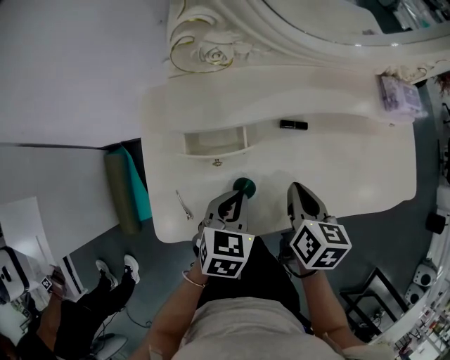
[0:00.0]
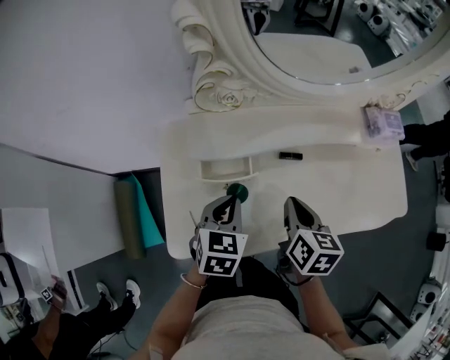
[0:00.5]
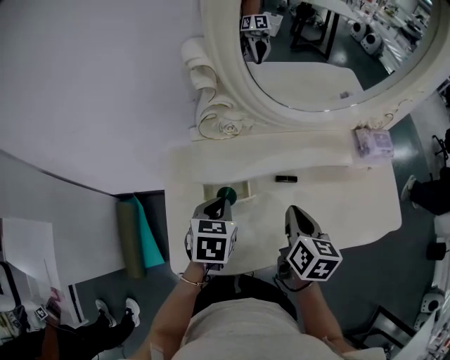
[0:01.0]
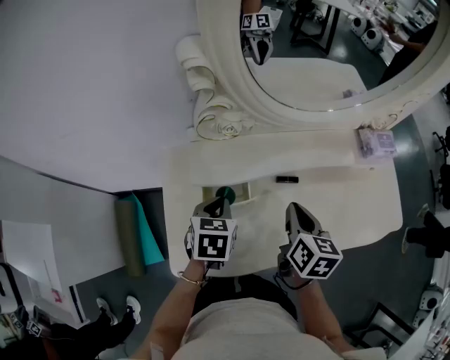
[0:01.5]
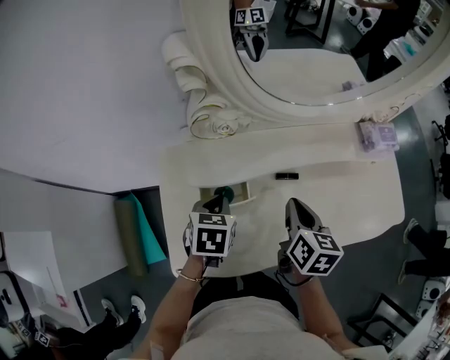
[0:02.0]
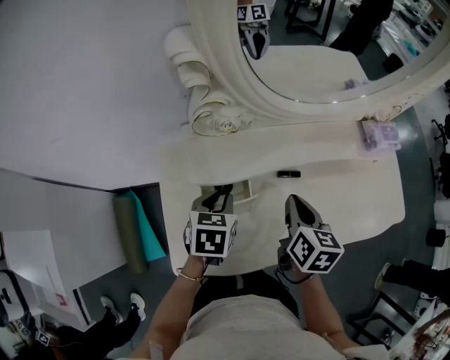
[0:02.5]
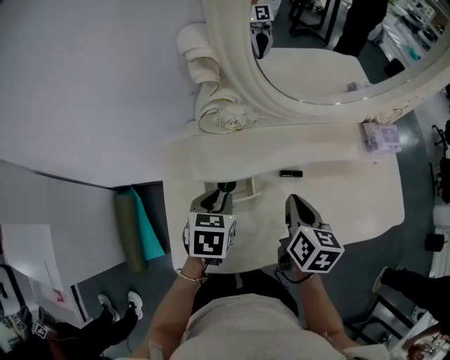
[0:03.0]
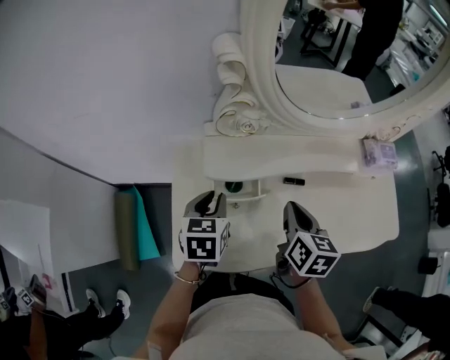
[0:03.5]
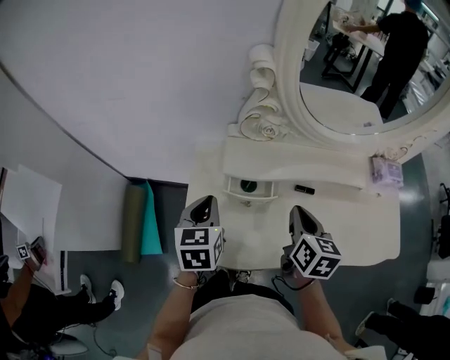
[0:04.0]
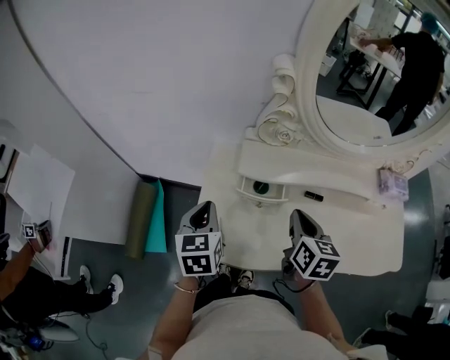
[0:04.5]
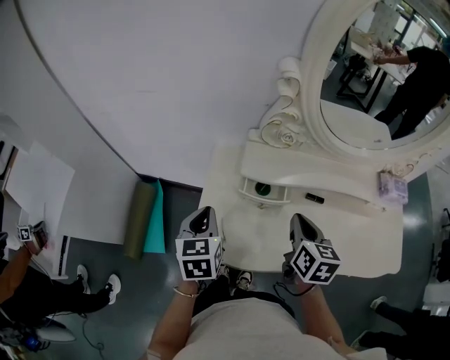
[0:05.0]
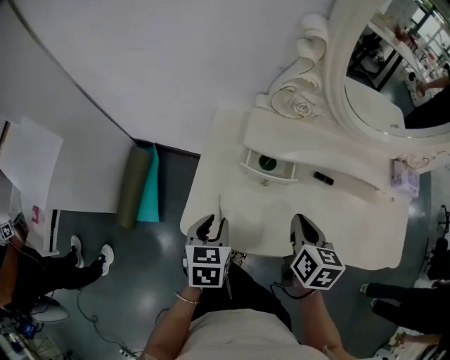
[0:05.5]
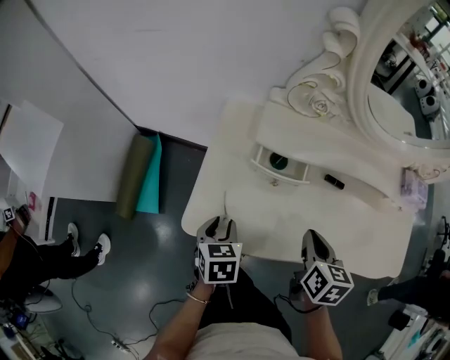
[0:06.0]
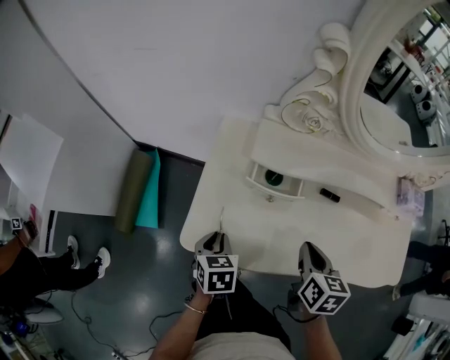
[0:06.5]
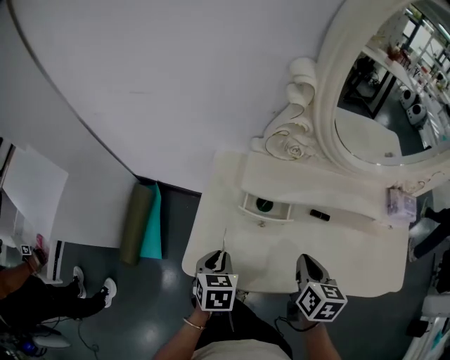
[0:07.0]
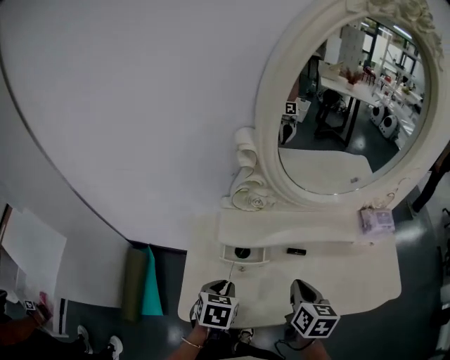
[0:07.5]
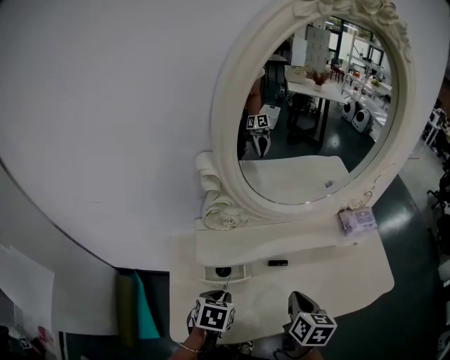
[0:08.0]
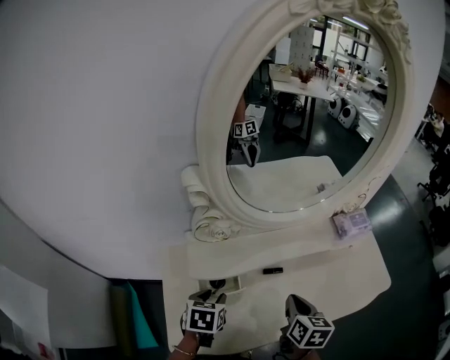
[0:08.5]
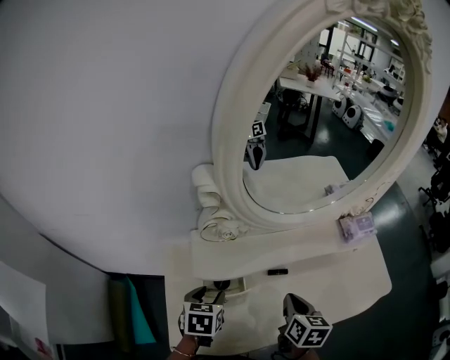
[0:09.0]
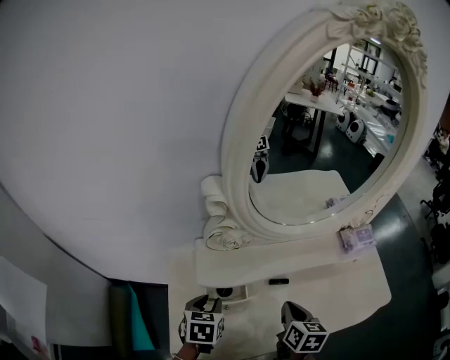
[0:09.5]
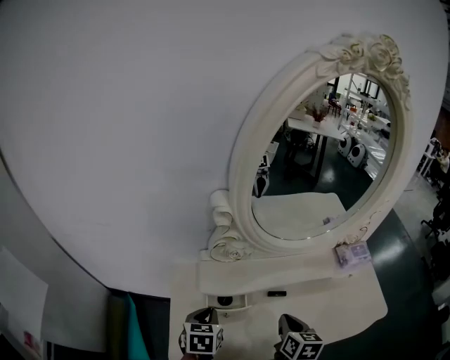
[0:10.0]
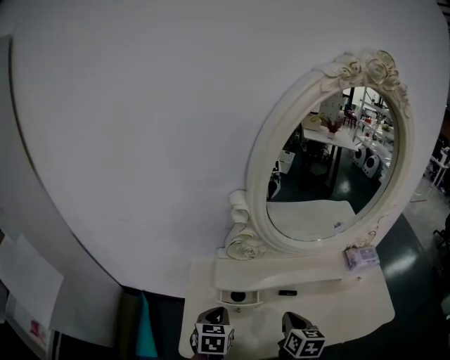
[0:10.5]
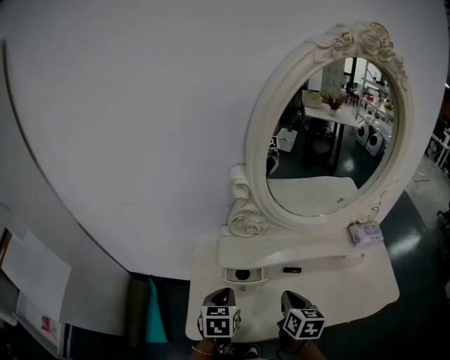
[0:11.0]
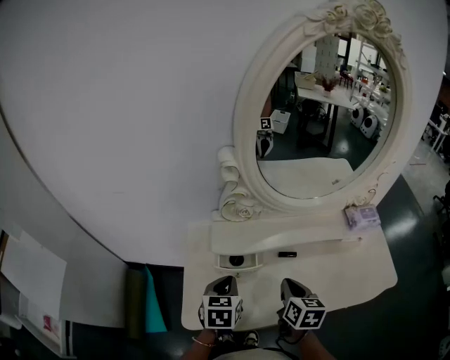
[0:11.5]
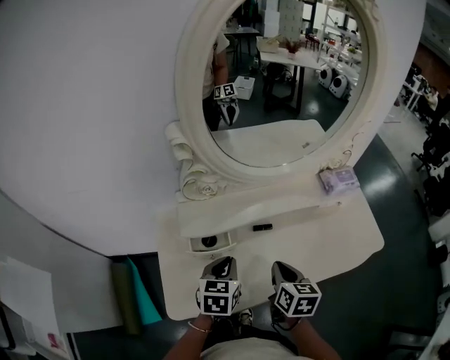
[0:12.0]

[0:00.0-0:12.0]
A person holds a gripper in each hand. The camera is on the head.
0.0 to 2.0 s: The left gripper shifts about 15 cm forward and to the left. The right gripper heads forward and upward, covering approximately 10 cm.
2.0 to 4.0 s: The left gripper is displaced to the left, upward and backward by some 15 cm, and turns by roughly 30 degrees, while the right gripper goes roughly 5 cm to the left.
4.0 to 6.0 s: The left gripper heads downward and backward, covering about 20 cm, changes its angle by roughly 20 degrees, and opens up, while the right gripper goes roughly 10 cm backward and downward.
6.0 to 8.0 s: The left gripper ends up roughly 15 cm from where it was, and swivels approximately 30 degrees. The right gripper ends up about 10 cm from where it was, and changes its angle by about 20 degrees.
8.0 to 10.0 s: The left gripper moves to the left, roughly 5 cm, and opens, then closes once more.
10.0 to 12.0 s: The left gripper goes roughly 10 cm to the right.

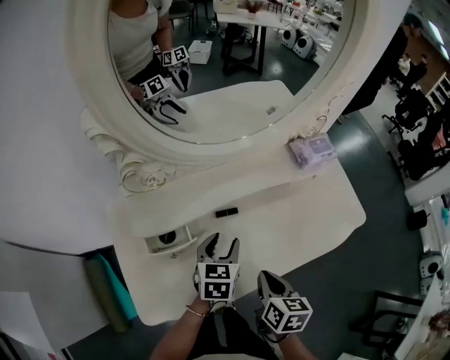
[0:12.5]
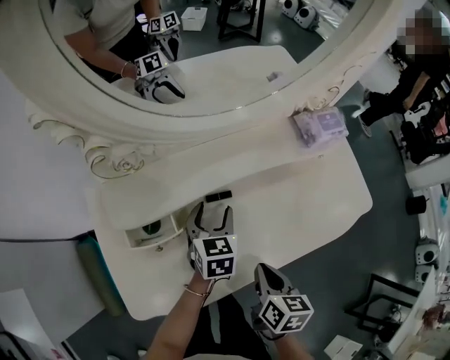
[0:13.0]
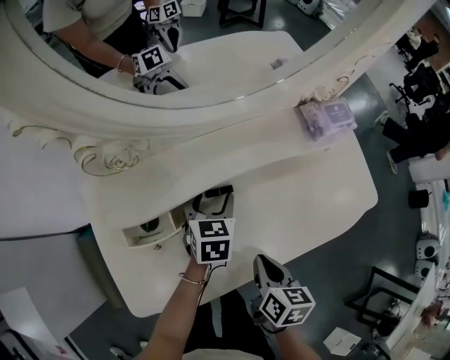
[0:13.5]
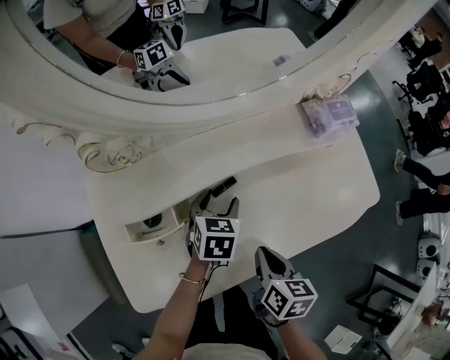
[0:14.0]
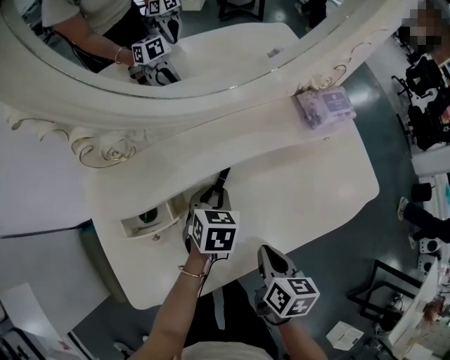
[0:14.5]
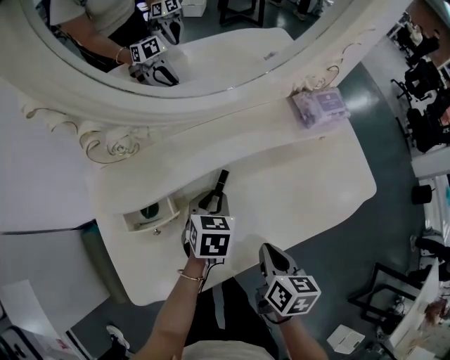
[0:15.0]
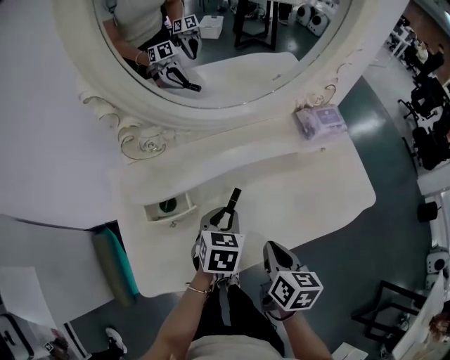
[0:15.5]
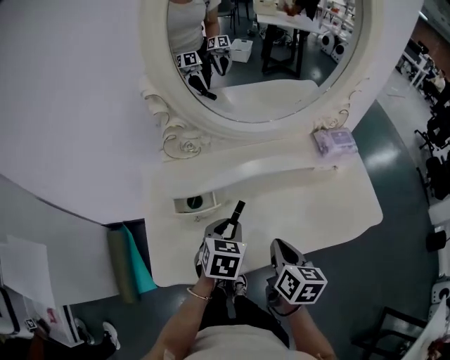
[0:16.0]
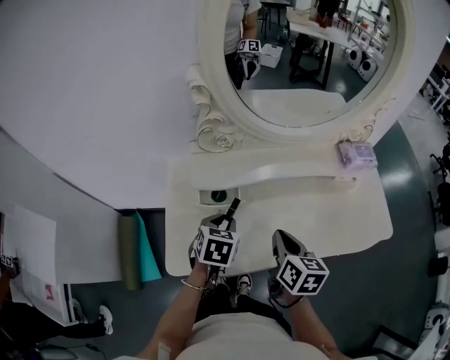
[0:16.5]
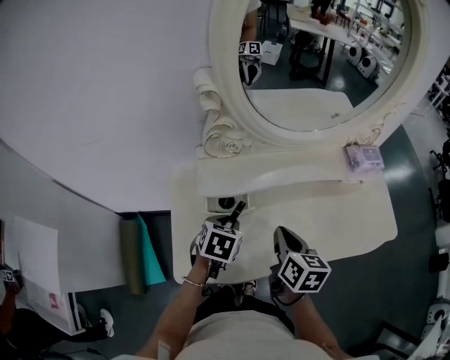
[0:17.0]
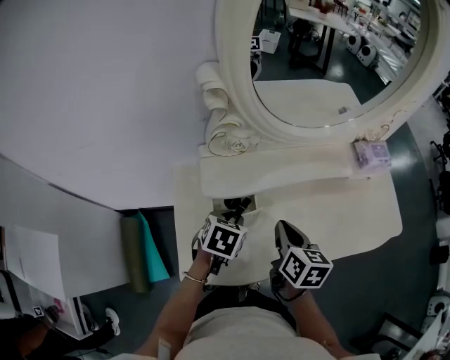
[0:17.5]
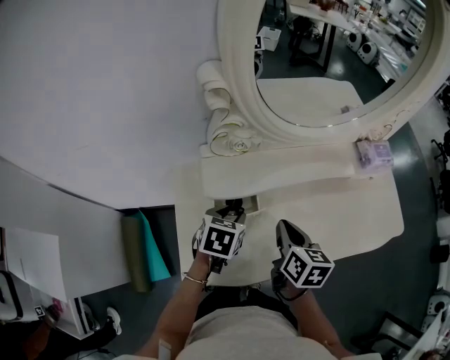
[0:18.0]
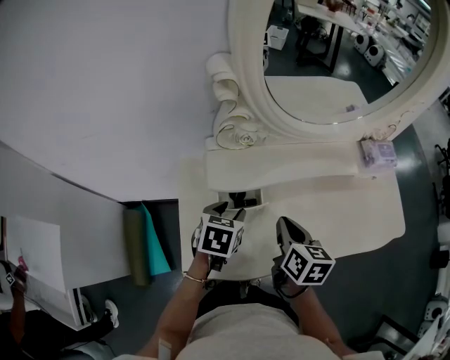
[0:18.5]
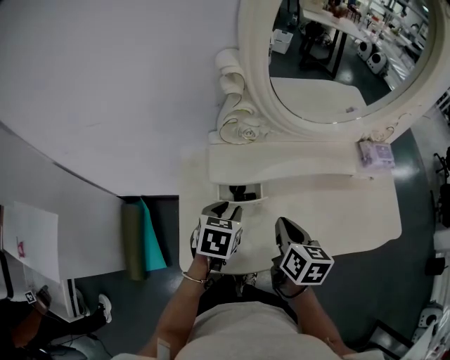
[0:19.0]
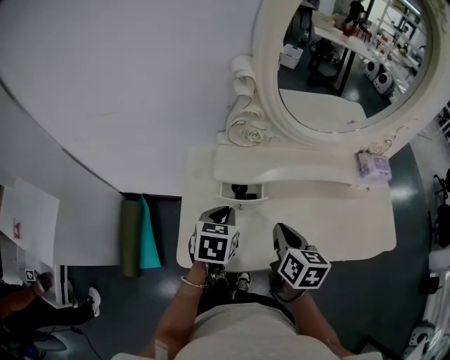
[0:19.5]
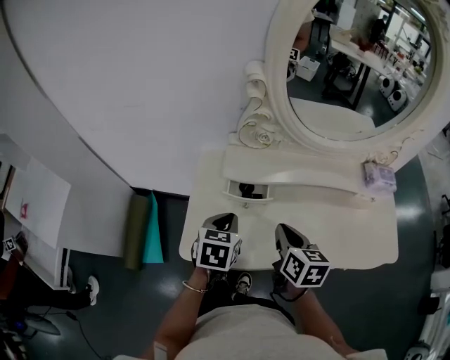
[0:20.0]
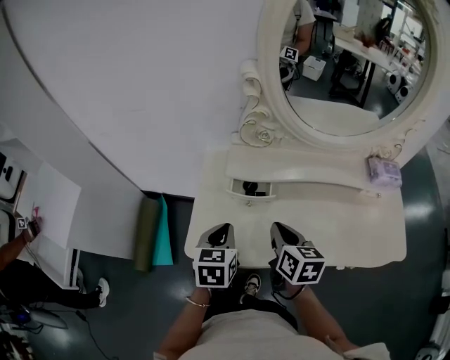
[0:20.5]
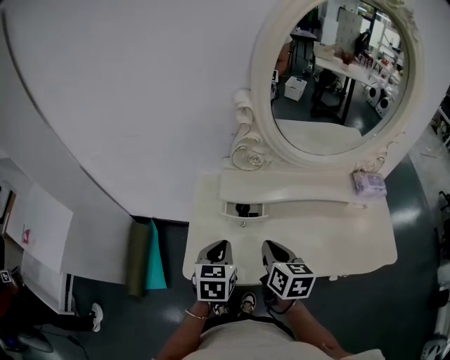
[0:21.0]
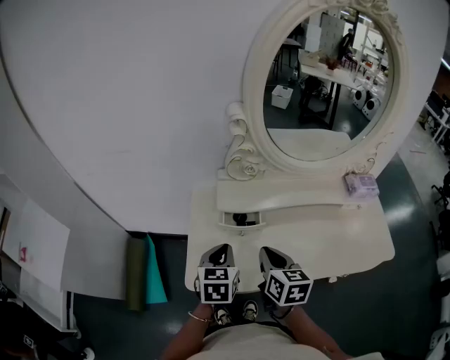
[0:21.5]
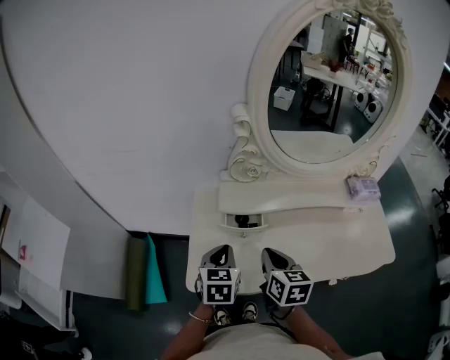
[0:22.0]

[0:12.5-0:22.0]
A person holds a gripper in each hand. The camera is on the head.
12.5 to 14.5 s: The left gripper shifts about 10 cm downward and forward, while the right gripper shifts by roughly 5 cm.
14.5 to 16.5 s: The right gripper is displaced upward and to the left by about 15 cm, and turns by approximately 20 degrees, while the left gripper is displaced to the left, backward and upward by some 20 cm.
16.5 to 18.0 s: The right gripper is displaced to the left and forward by approximately 10 cm; the left gripper moves forward, roughly 5 cm.
18.0 to 20.0 s: The right gripper shifts roughly 5 cm backward, while the left gripper goes approximately 10 cm backward and upward, turns by about 20 degrees, and closes.
20.0 to 22.0 s: The grippers make only small movements.

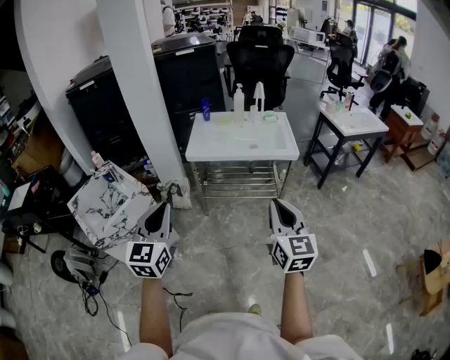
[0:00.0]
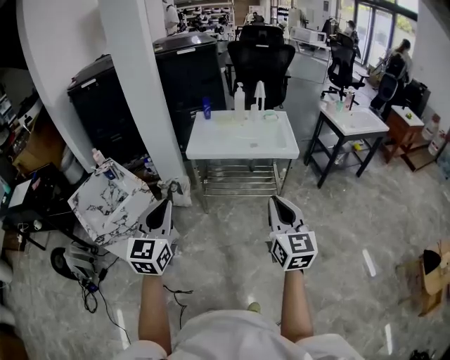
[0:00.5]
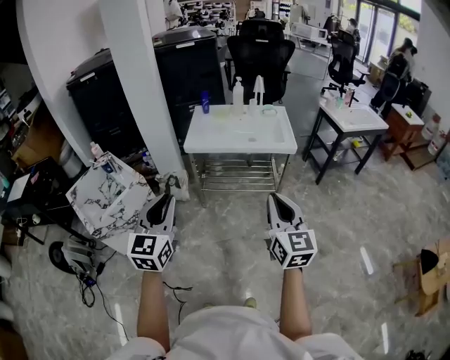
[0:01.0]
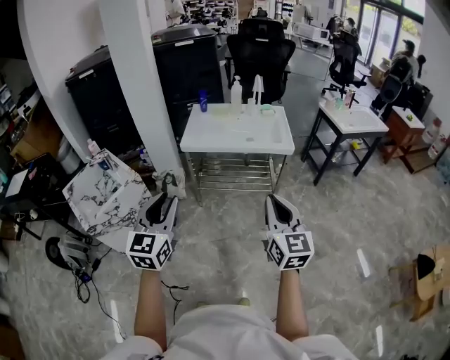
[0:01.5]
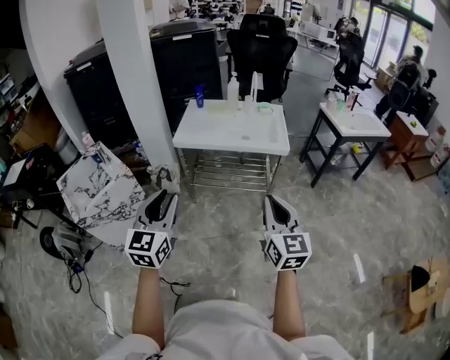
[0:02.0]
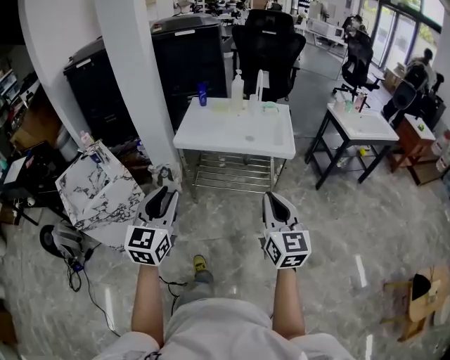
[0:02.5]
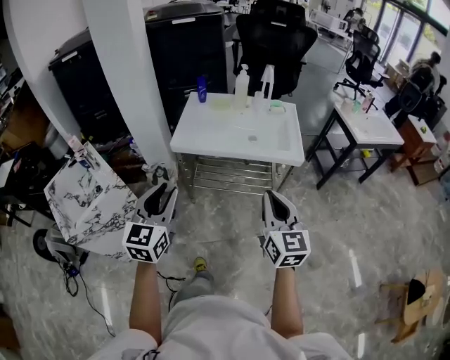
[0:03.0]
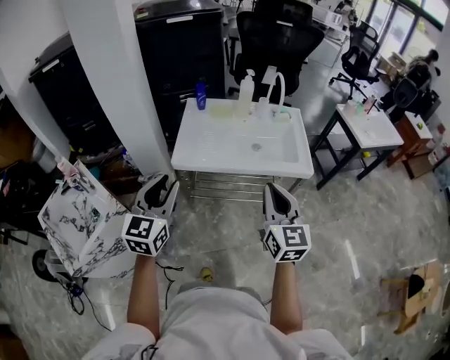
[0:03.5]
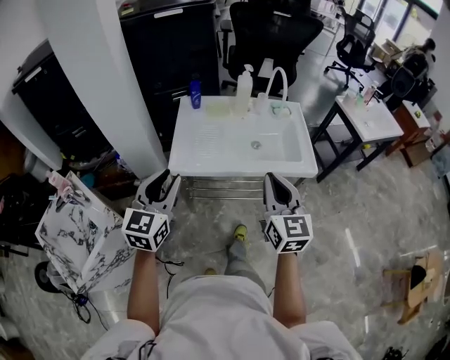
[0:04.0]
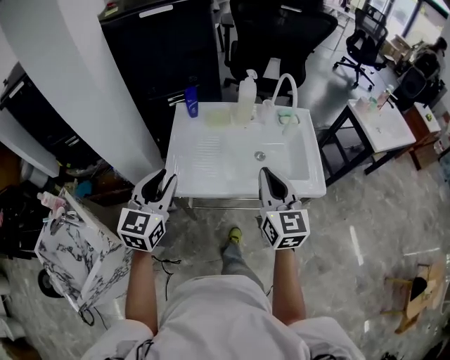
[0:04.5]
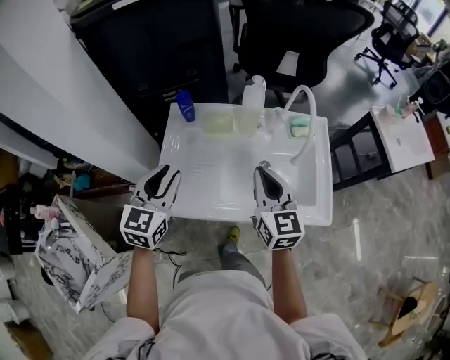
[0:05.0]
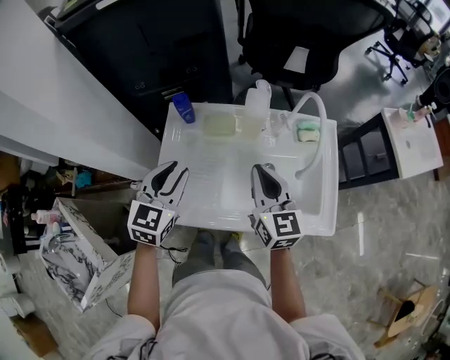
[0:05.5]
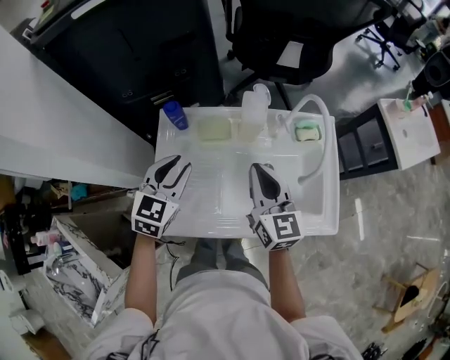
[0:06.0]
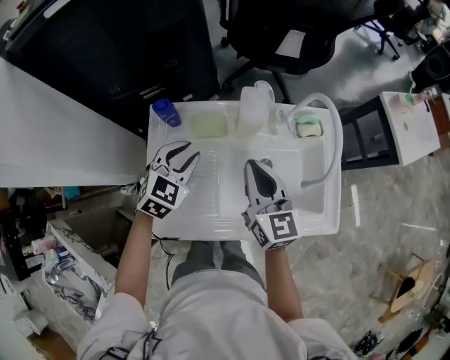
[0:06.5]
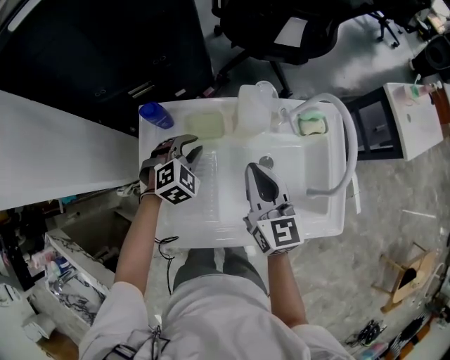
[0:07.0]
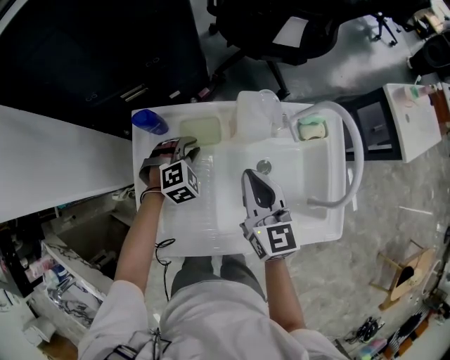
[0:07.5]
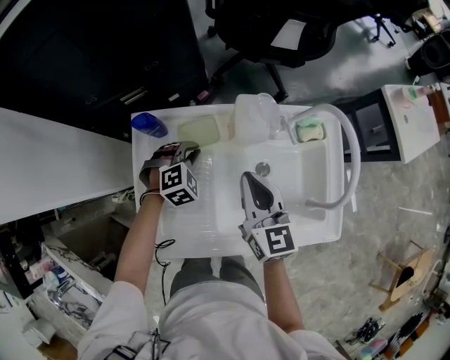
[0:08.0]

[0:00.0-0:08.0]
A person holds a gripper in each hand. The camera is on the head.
0.0 to 2.0 s: The grippers both shift to the right by approximately 10 cm. The left gripper opens its fingers.
2.0 to 4.0 s: Both grippers are carried forward, some 40 cm.
4.0 to 6.0 s: The pair of grippers is taken forward, roughly 40 cm. The left gripper changes its angle by approximately 20 degrees.
6.0 to 8.0 s: The left gripper is displaced downward and forward by approximately 25 cm, and swivels some 50 degrees; the right gripper goes about 10 cm downward and forward.
